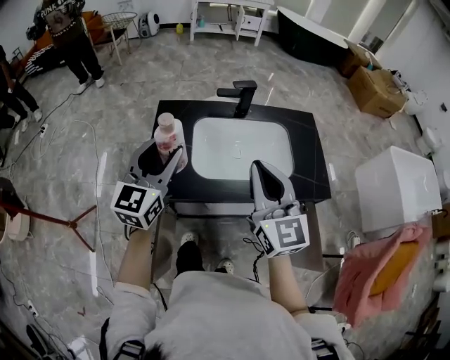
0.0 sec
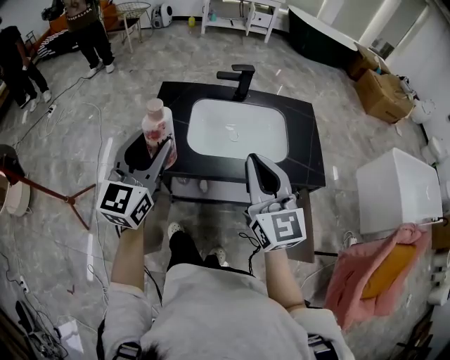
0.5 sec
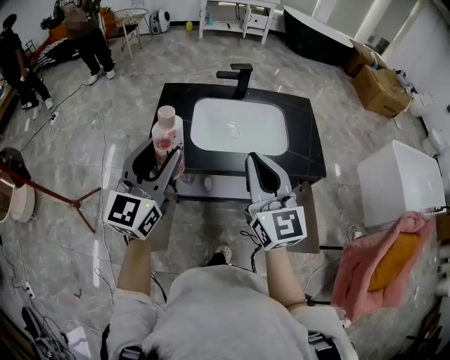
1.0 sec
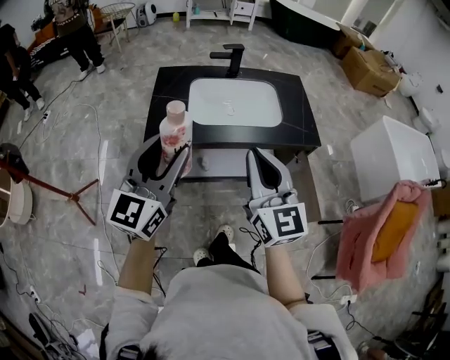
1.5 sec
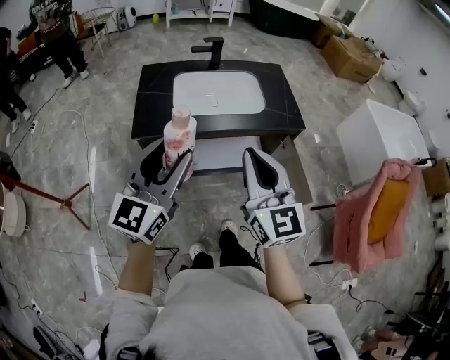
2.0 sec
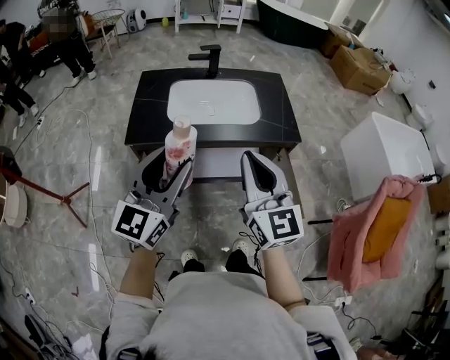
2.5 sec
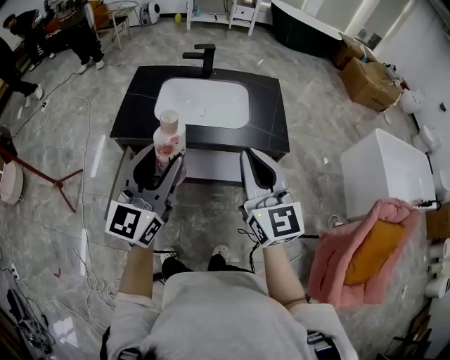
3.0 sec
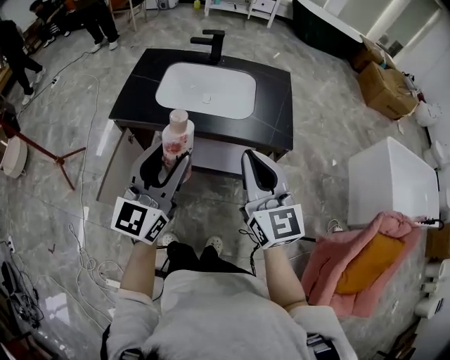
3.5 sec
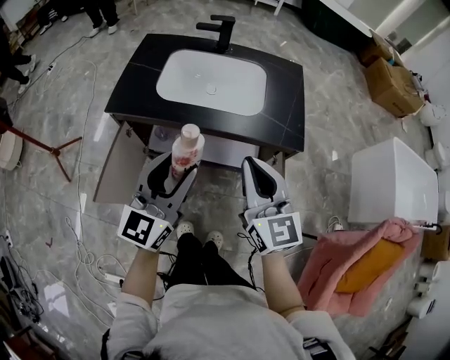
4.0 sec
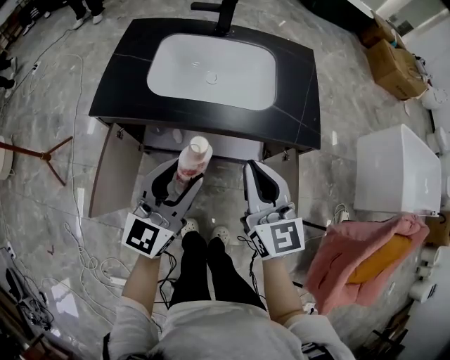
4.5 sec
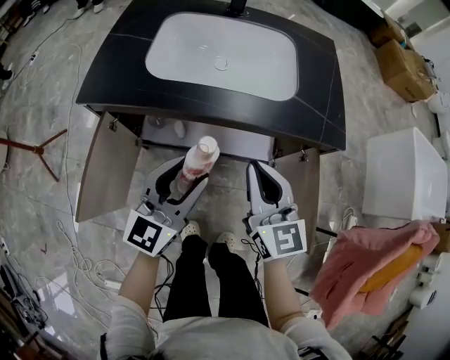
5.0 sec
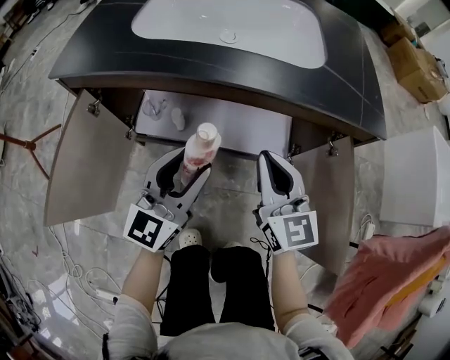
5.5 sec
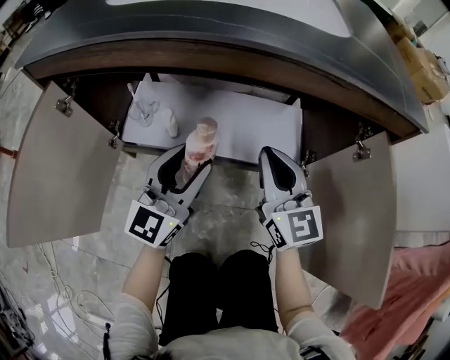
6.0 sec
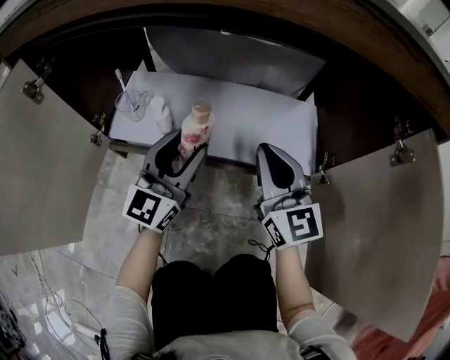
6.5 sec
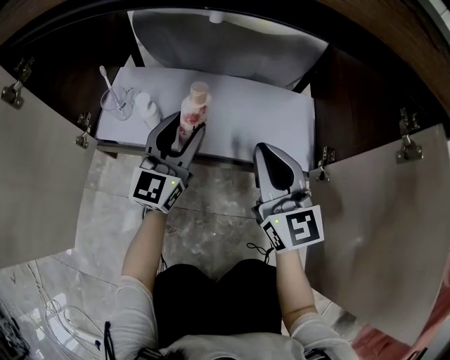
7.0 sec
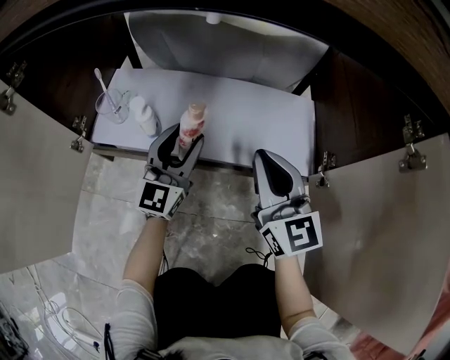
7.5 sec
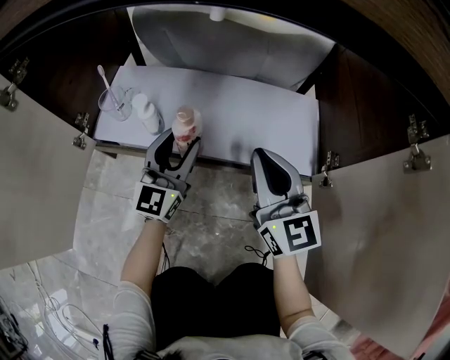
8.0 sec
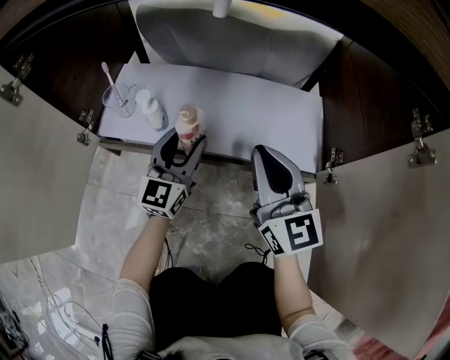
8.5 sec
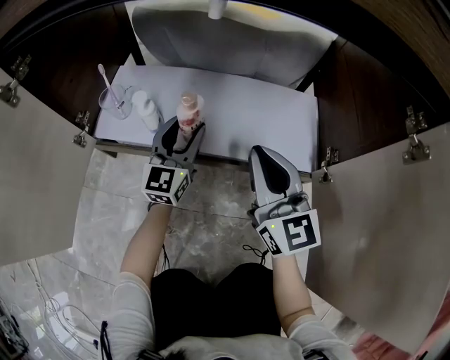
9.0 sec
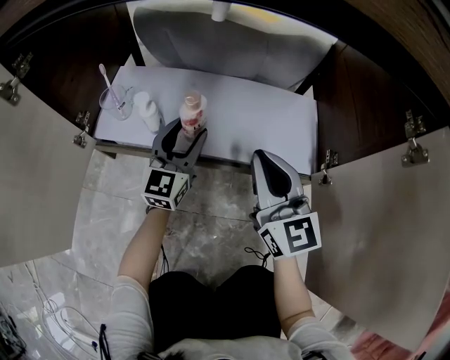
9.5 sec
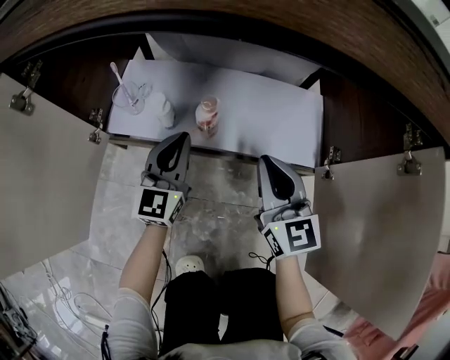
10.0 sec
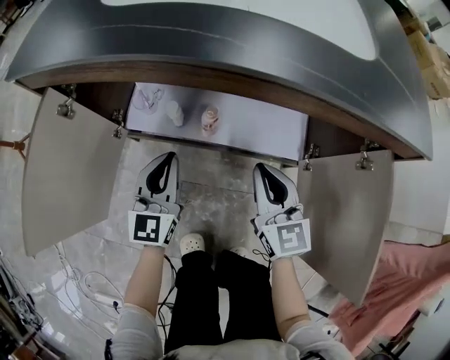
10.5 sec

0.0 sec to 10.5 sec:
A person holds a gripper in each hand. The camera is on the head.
0.0 sec to 2.0 sec: Both grippers move backward, about 30 cm.
2.0 sec to 4.0 sec: The left gripper goes about 20 cm to the right and downward; the right gripper is displaced to the right, forward and downward by about 20 cm.
4.0 sec to 6.5 sec: Both grippers travel together downward, some 60 cm.
6.5 sec to 8.5 sec: The left gripper heads downward, covering some 10 cm.
8.5 sec to 10.5 sec: The right gripper is displaced upward by roughly 10 cm, while the left gripper moves upward and backward, some 20 cm, and closes.

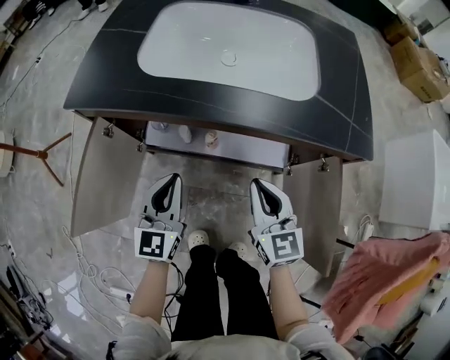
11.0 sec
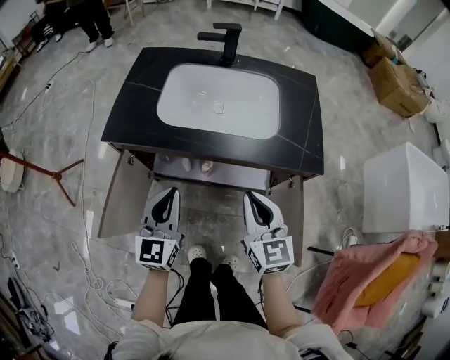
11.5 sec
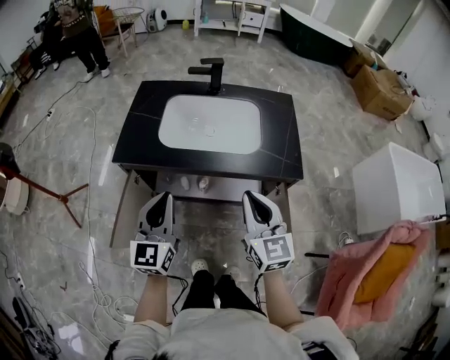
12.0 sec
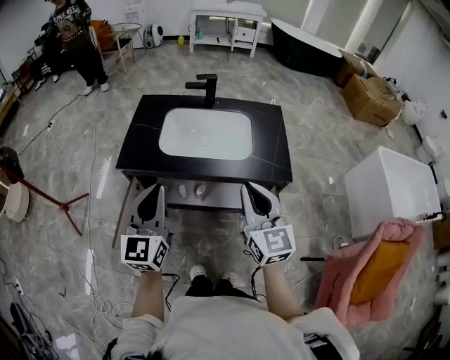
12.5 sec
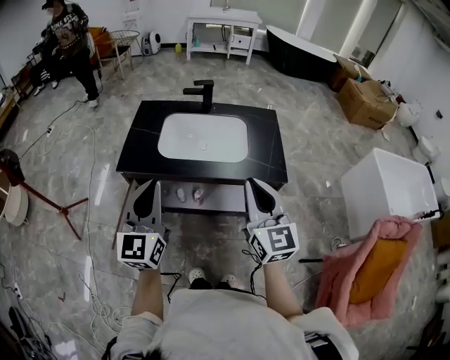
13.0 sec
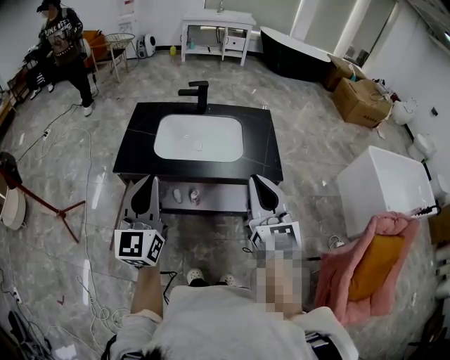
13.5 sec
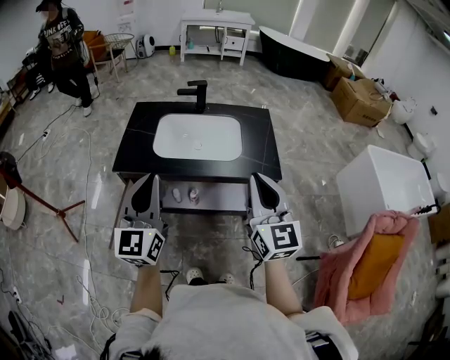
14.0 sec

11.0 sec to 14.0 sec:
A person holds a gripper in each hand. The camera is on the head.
11.0 sec to 12.5 sec: The grippers both shift upward by some 40 cm.
12.5 sec to 14.0 sec: The grippers both shift upward by approximately 5 cm.

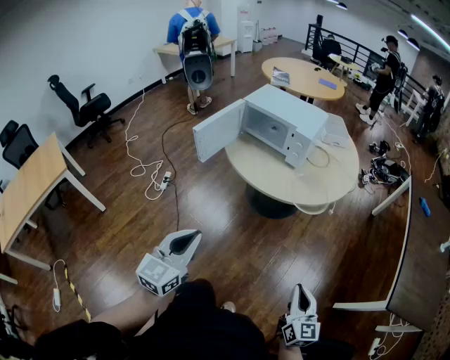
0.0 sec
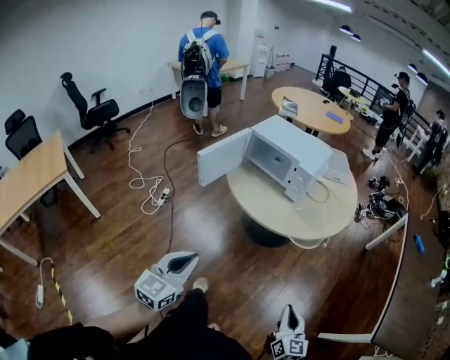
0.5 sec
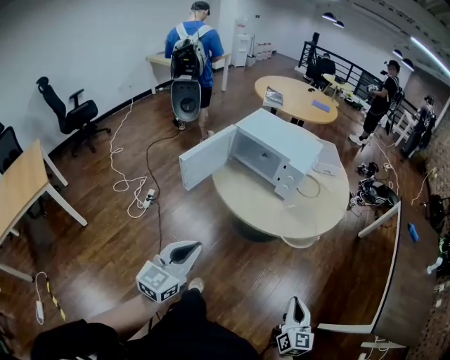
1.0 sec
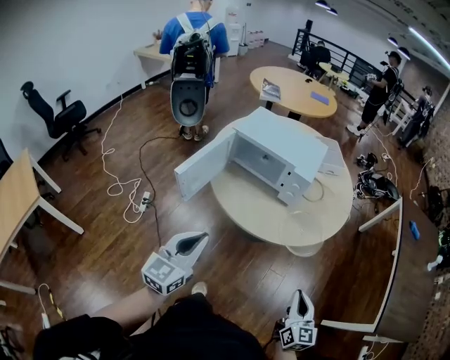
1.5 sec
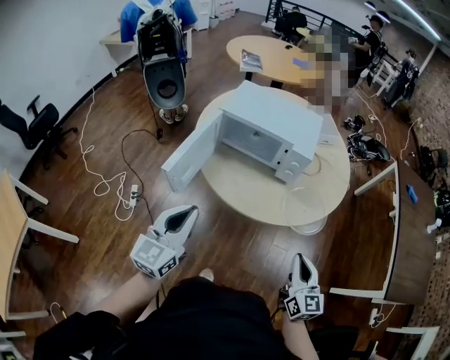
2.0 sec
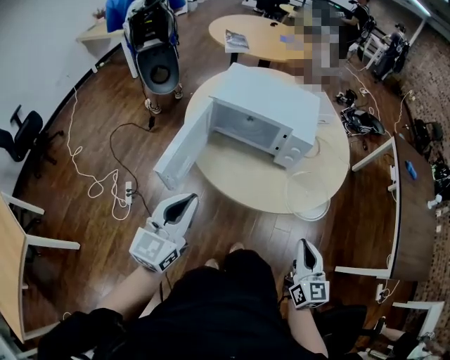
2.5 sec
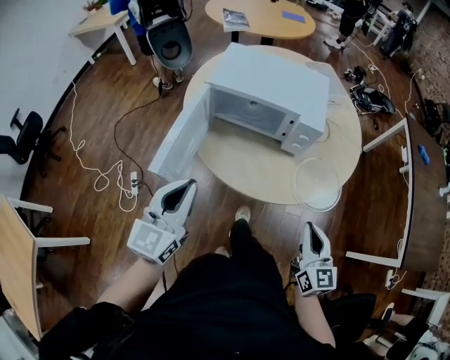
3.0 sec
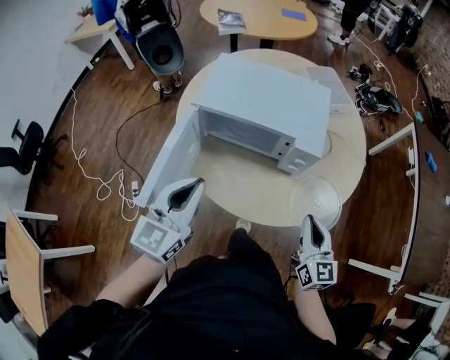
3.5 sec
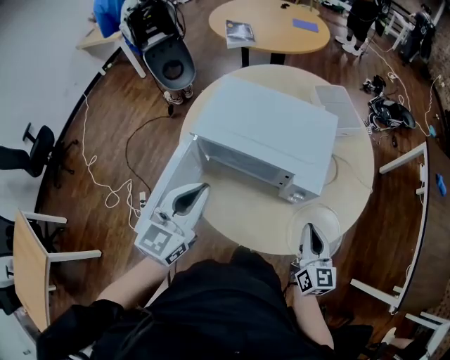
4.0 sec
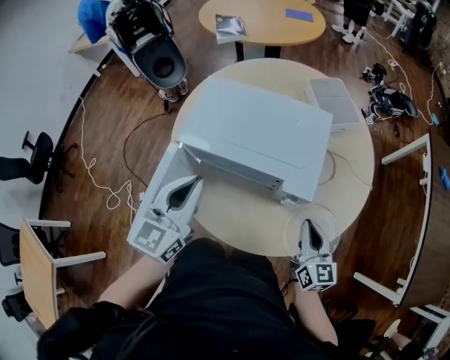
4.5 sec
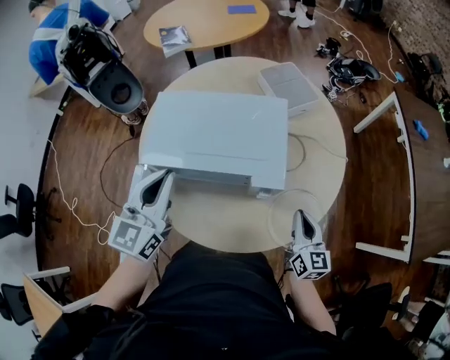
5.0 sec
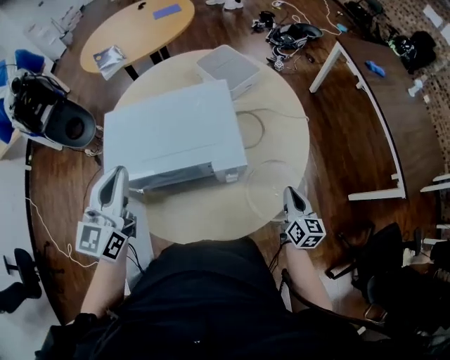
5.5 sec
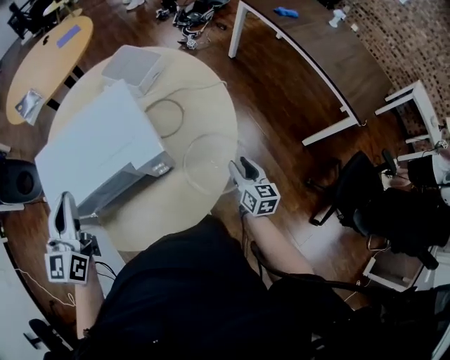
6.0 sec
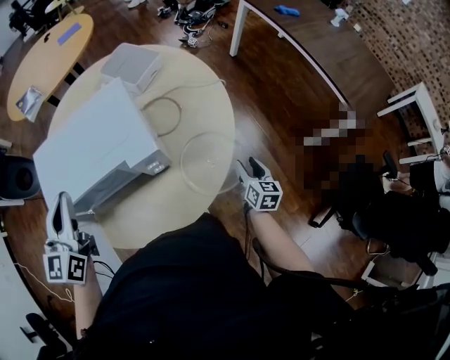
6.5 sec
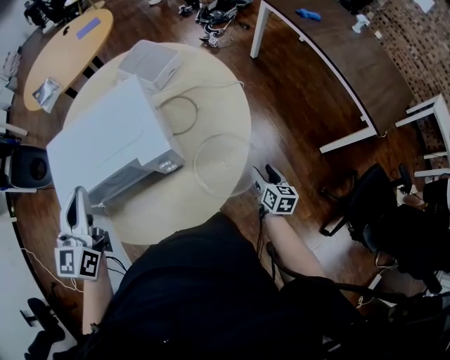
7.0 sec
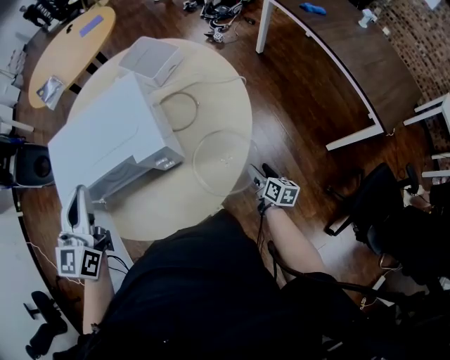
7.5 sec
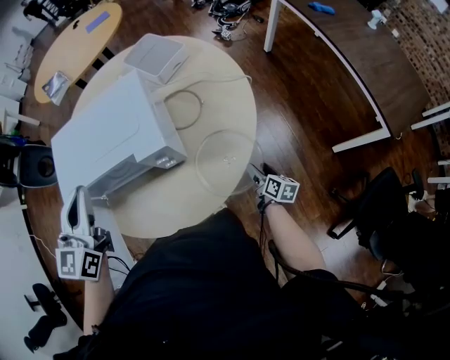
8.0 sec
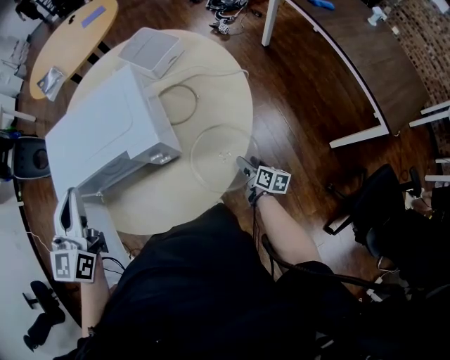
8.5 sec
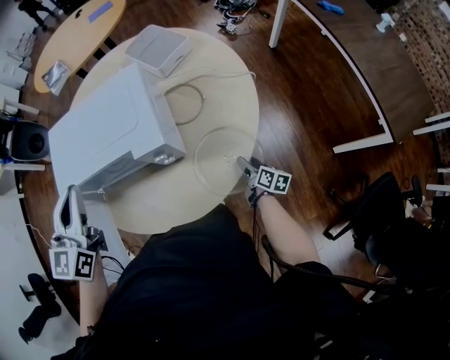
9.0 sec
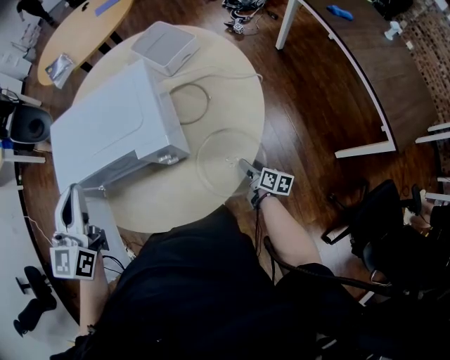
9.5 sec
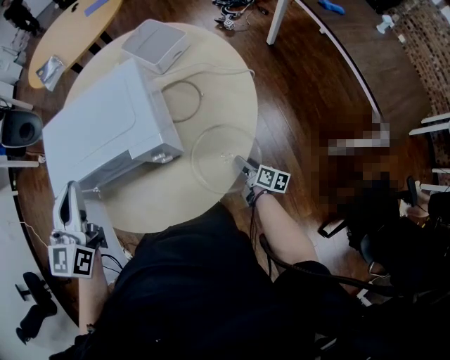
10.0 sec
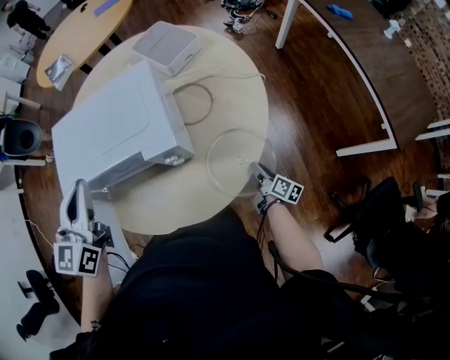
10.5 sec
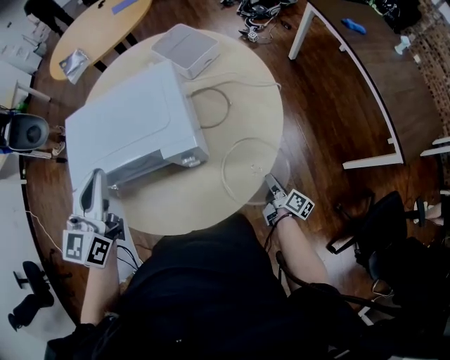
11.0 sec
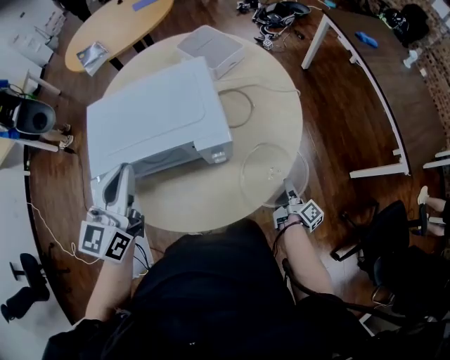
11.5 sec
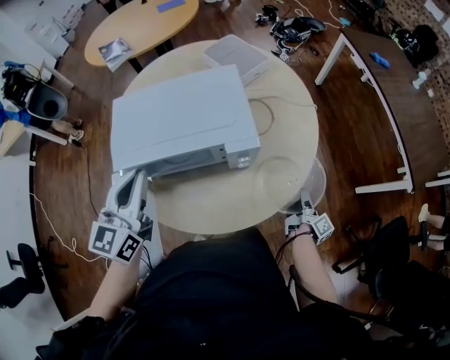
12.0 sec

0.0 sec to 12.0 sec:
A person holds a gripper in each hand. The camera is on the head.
0.0 sec to 2.0 sec: The left gripper goes roughly 25 cm forward. Meanwhile the right gripper heads forward and to the left, covering about 25 cm.
2.0 sec to 4.0 sec: The two grippers go some 25 cm forward.
4.0 sec to 6.0 sec: The right gripper moves about 20 cm, rotates approximately 40 degrees, and opens its fingers. Meanwhile the left gripper moves approximately 15 cm.
6.0 sec to 8.0 sec: The left gripper heads to the right, covering some 5 cm. The right gripper travels downward by roughly 15 cm, turns by roughly 30 degrees, and opens.
8.0 sec to 10.0 sec: The grippers stay close to where they were, moving slightly.
10.0 sec to 12.0 sec: The right gripper moves upward, about 10 cm, turns by approximately 40 degrees, and closes up. Meanwhile the left gripper shifts approximately 5 cm to the left.

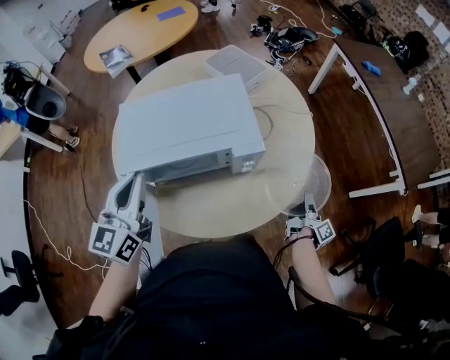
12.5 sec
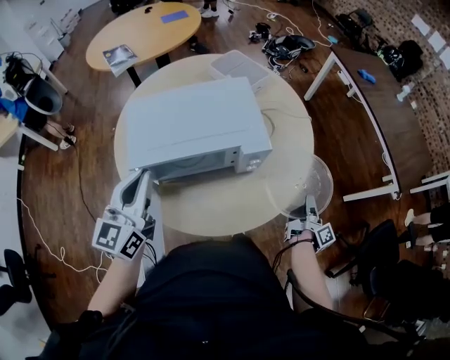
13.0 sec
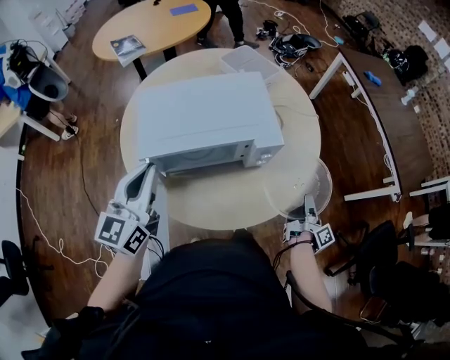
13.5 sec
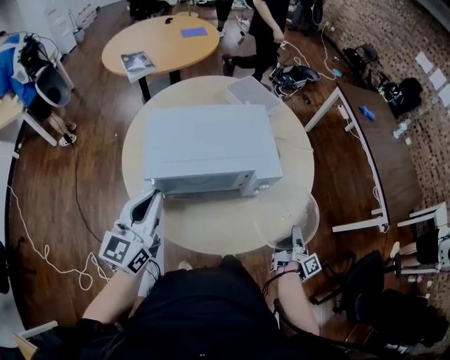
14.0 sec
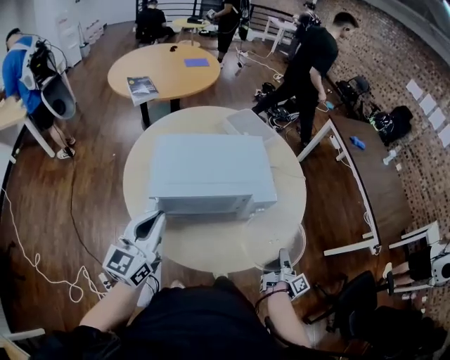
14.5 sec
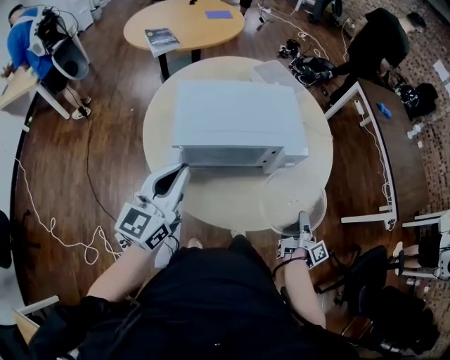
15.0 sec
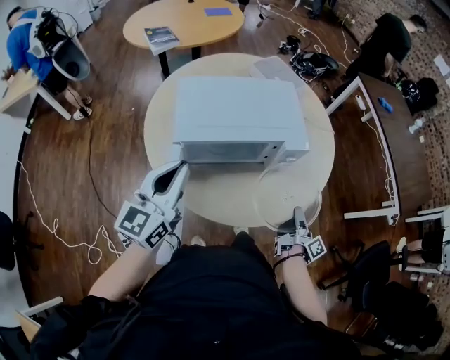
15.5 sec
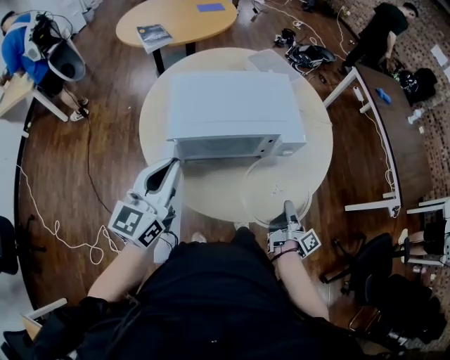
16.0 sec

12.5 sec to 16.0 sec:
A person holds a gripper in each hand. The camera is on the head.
12.5 sec to 14.5 sec: The left gripper shifts roughly 5 cm backward, while the right gripper moves backward and to the left, about 10 cm.
14.5 sec to 16.0 sec: The right gripper moves to the left, about 10 cm.
